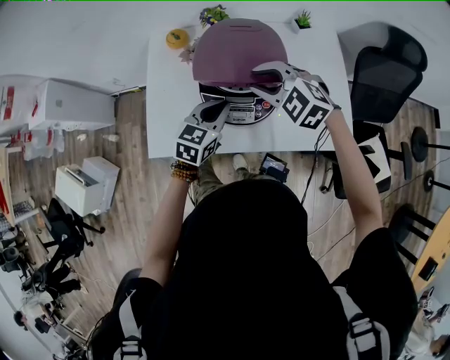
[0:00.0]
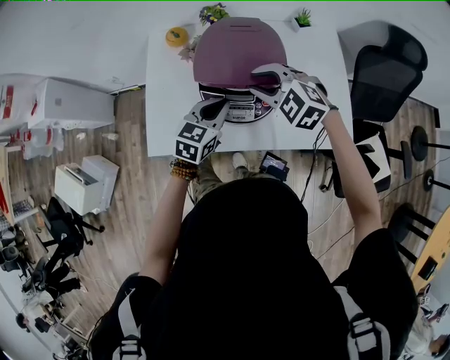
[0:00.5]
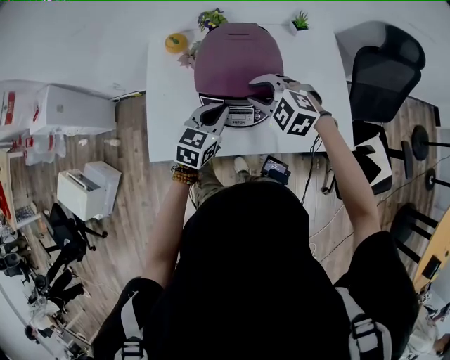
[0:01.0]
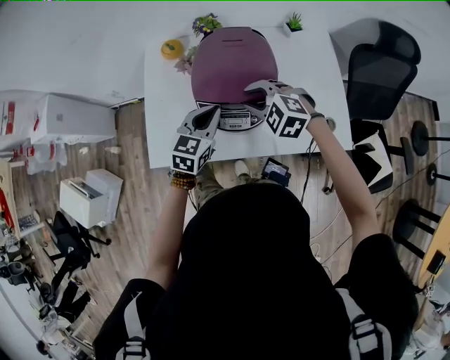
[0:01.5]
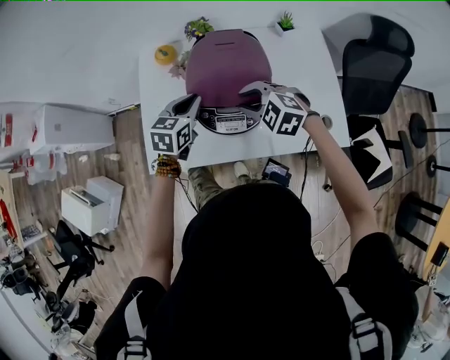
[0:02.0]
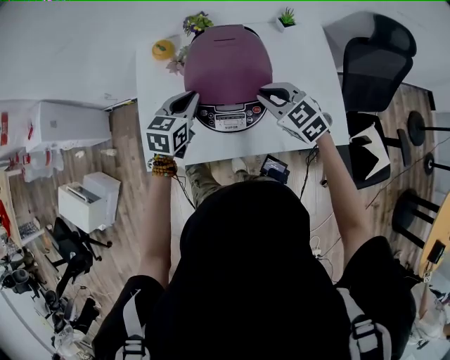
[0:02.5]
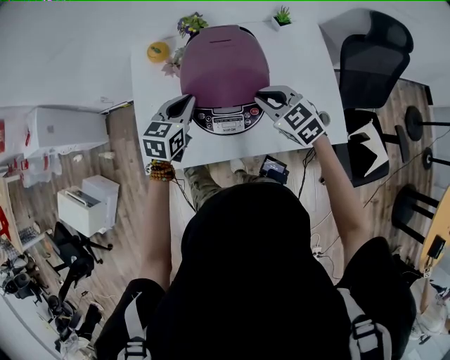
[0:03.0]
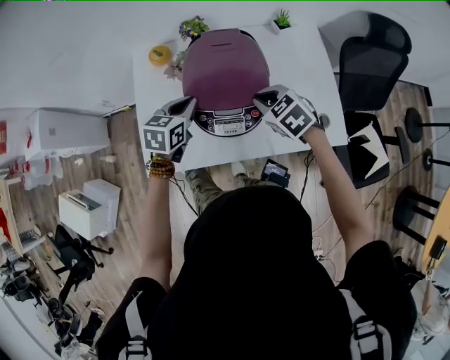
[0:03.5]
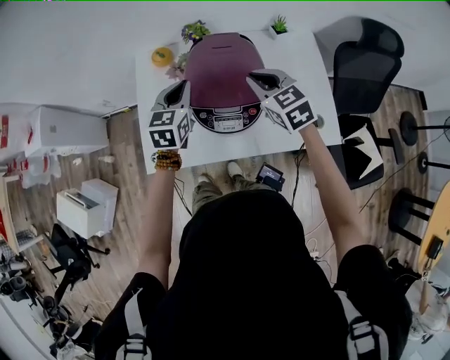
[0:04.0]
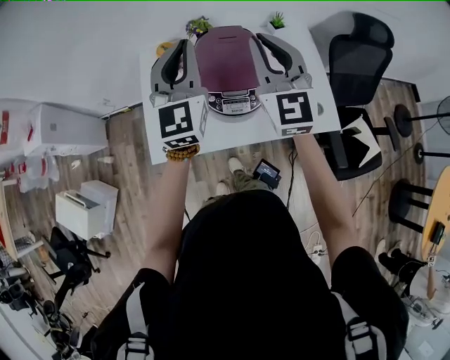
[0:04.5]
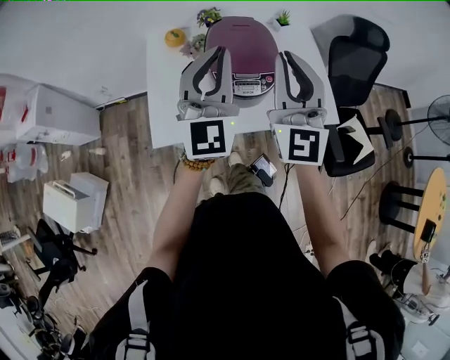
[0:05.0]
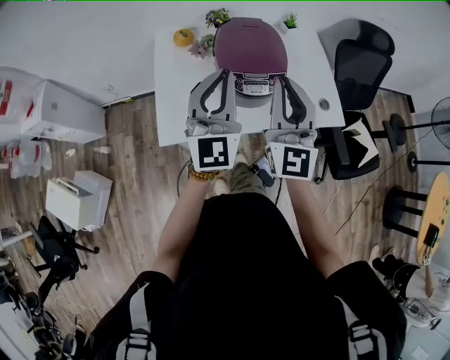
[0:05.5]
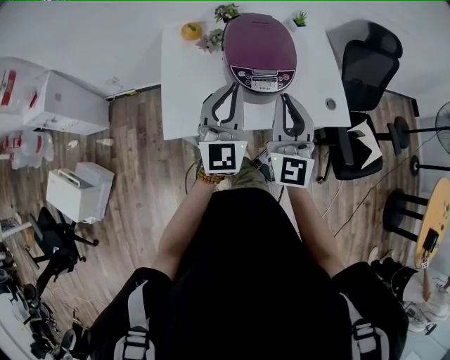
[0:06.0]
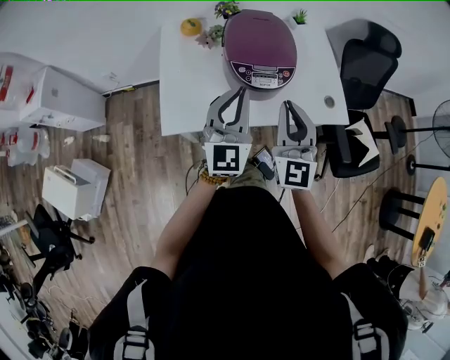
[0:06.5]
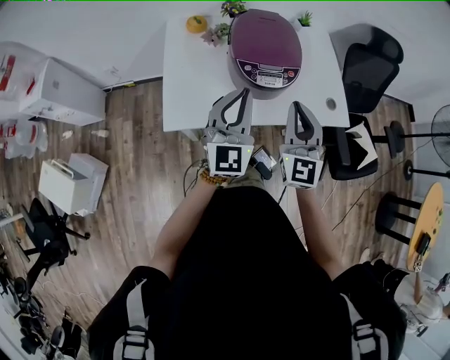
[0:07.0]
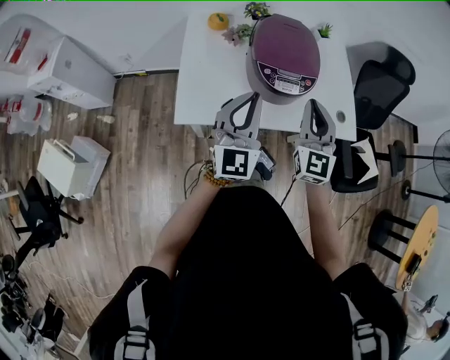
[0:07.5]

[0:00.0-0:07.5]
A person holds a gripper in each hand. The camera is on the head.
0:00.0 to 0:02.0: The left gripper is displaced forward by roughly 5 cm. The right gripper moves downward, some 5 cm.
0:02.0 to 0:04.0: The left gripper goes roughly 5 cm upward. The right gripper travels upward and to the right by approximately 10 cm, and rotates some 40 degrees.
0:04.0 to 0:05.5: The two grippers go approximately 25 cm backward and upward. The left gripper tilts its fingers approximately 40 degrees upward. Meanwhile the right gripper angles its fingers upward, by approximately 40 degrees.
0:05.5 to 0:07.5: Both grippers move downward, some 10 cm.

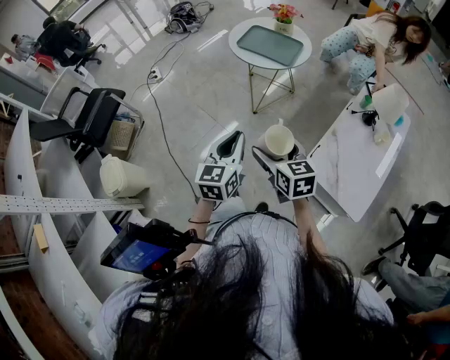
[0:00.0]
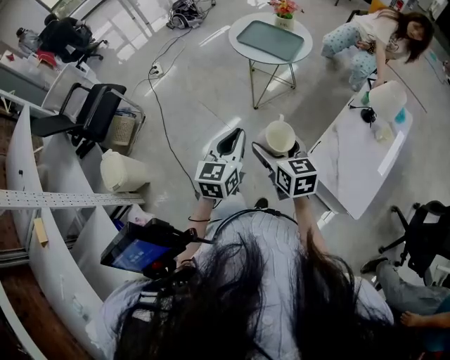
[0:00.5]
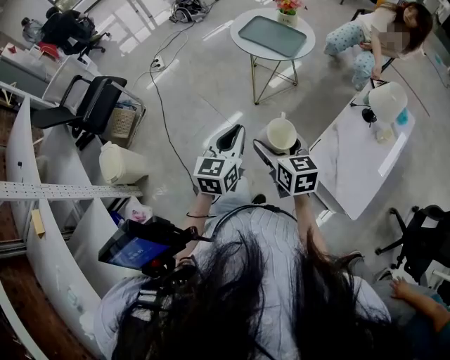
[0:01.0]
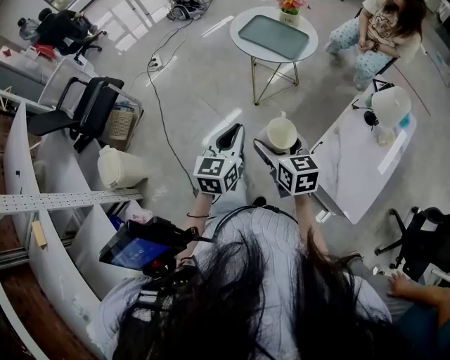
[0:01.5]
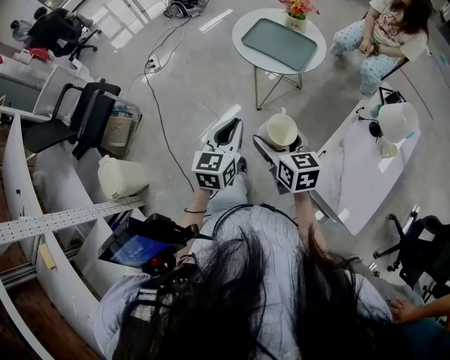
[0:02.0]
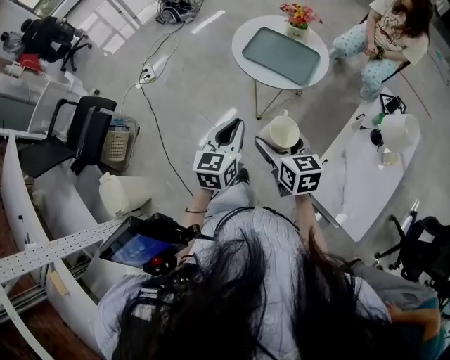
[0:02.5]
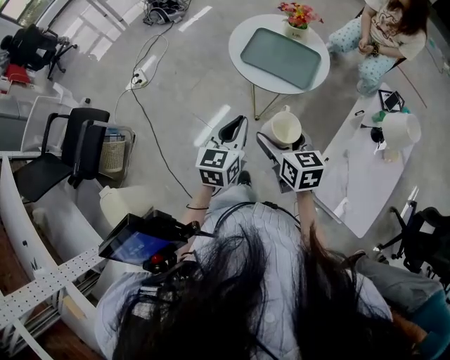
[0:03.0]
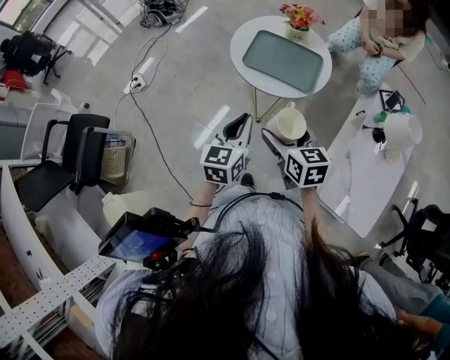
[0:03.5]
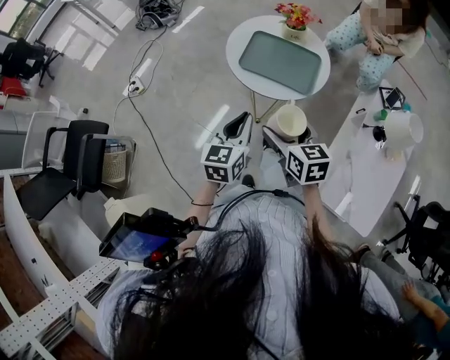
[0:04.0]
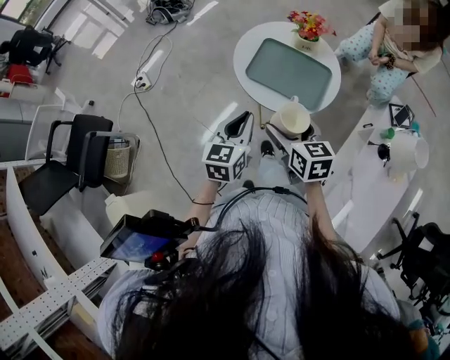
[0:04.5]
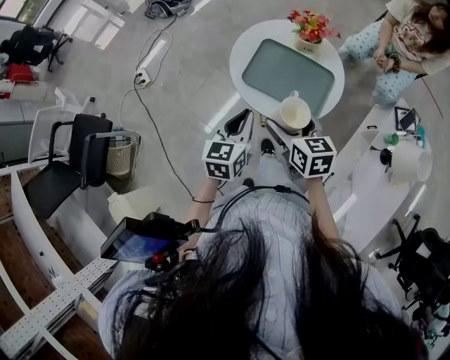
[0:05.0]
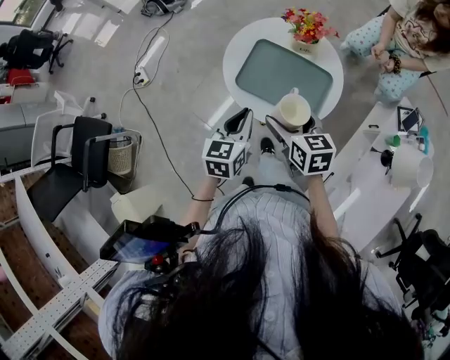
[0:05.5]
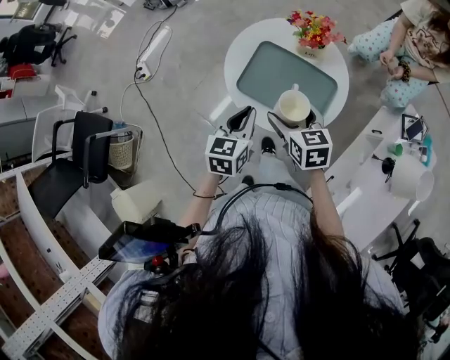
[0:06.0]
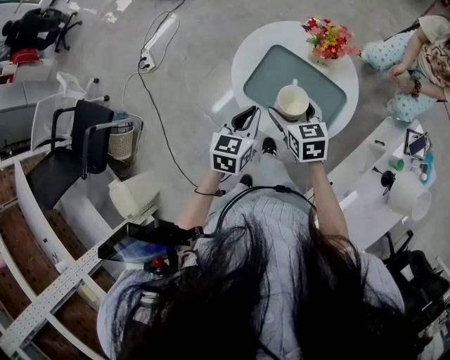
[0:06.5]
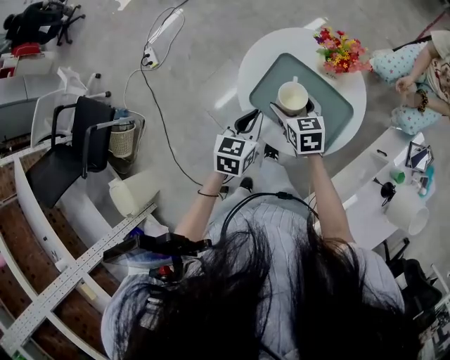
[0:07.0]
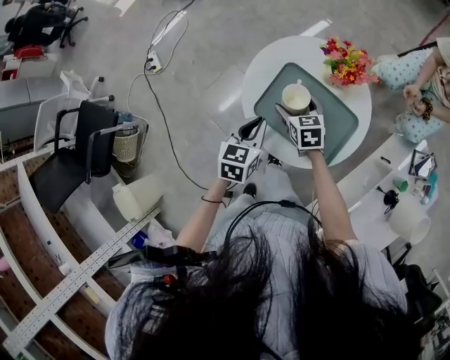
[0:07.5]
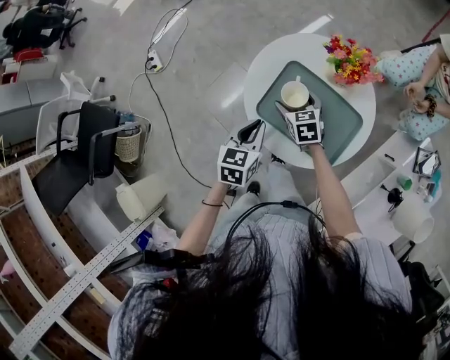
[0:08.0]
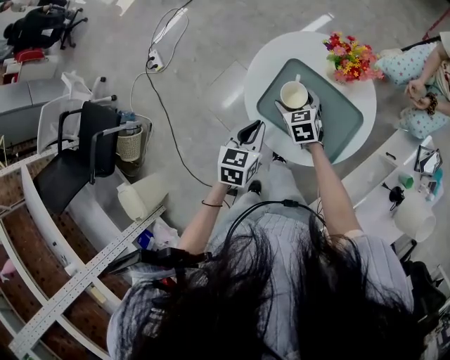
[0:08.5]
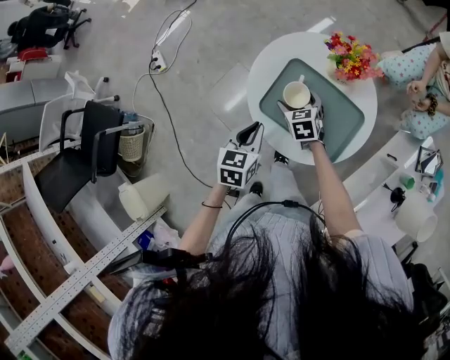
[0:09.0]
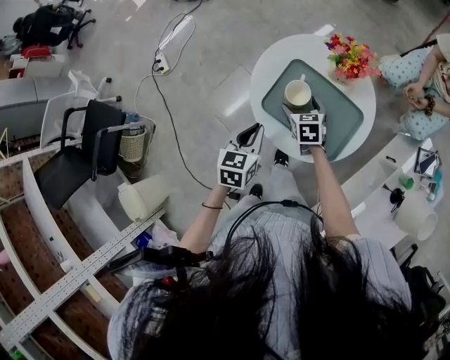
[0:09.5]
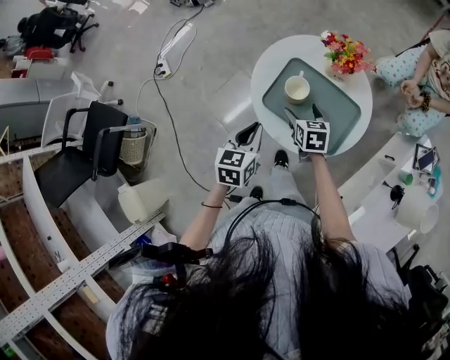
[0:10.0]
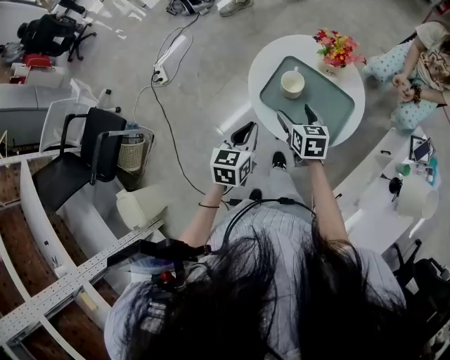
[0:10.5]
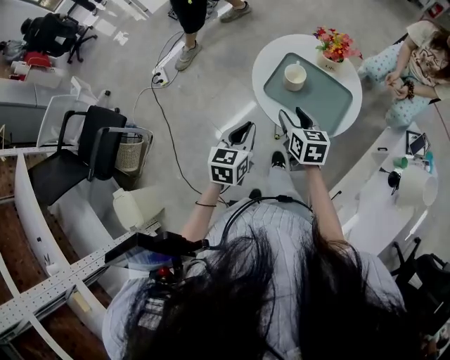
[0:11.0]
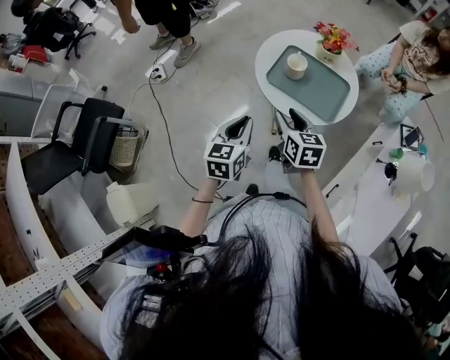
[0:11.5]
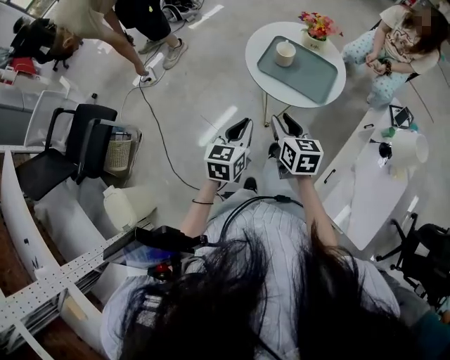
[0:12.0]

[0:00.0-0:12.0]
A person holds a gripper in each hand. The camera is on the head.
0:00.0 to 0:02.0: The grippers both shift forward by roughly 15 cm.
0:02.0 to 0:04.0: The two grippers go roughly 20 cm forward.
0:04.0 to 0:06.0: The grippers both shift forward by approximately 20 cm.
0:06.0 to 0:08.0: The right gripper is displaced forward and downward by some 20 cm, while the left gripper shifts about 10 cm downward and forward.
0:08.0 to 0:10.0: Both grippers travel together backward, about 5 cm.
0:10.0 to 0:12.0: The left gripper is displaced backward by approximately 20 cm. Meanwhile the right gripper heads backward and upward, covering some 30 cm, and closes its fingers.

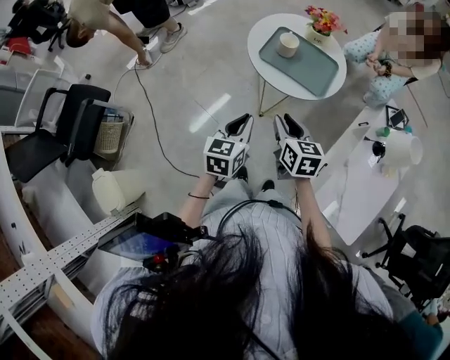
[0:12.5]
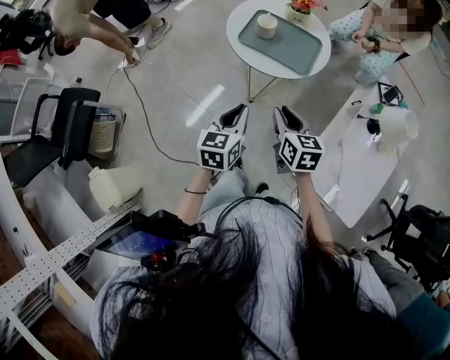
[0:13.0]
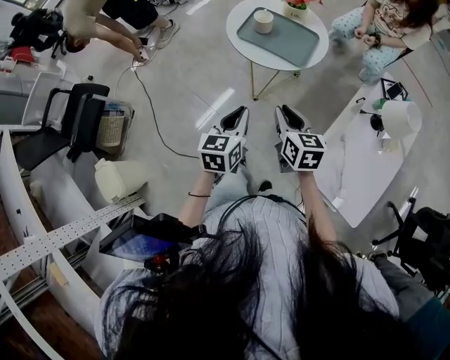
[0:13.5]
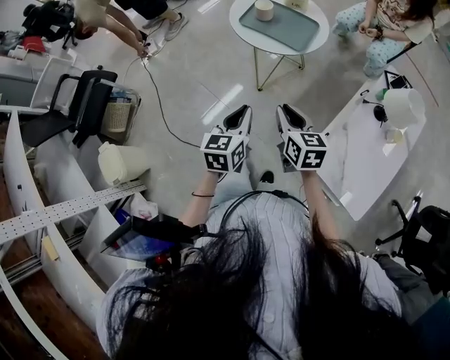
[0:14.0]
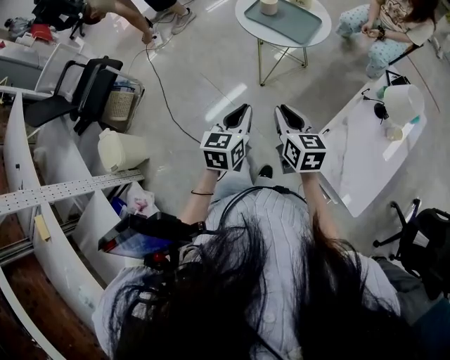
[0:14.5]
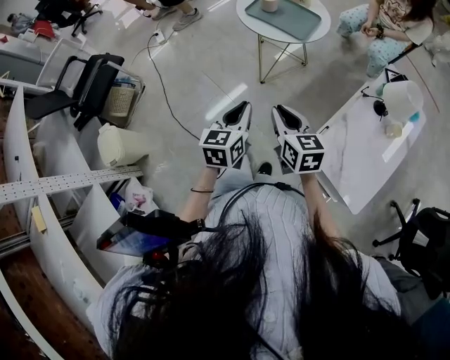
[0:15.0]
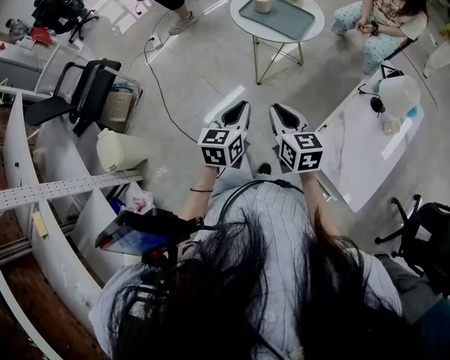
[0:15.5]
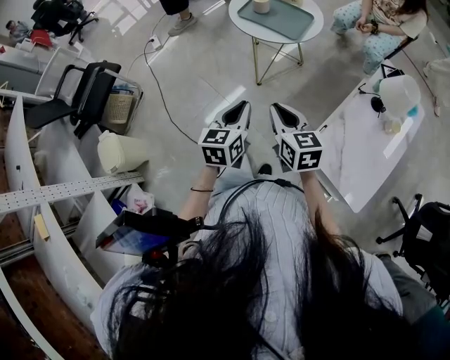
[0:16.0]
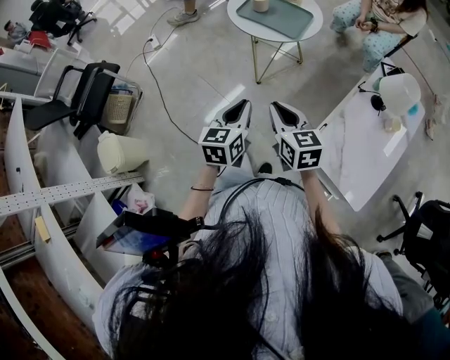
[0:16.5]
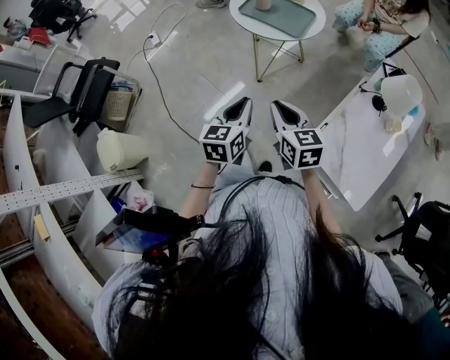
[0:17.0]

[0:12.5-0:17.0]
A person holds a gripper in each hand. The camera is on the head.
0:12.5 to 0:14.5: The grippers both shift backward and to the right by some 25 cm.
0:14.5 to 0:17.0: The grippers make only small movements.

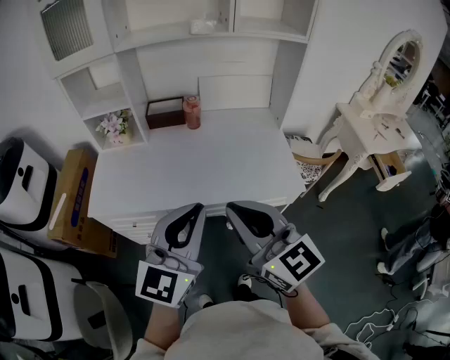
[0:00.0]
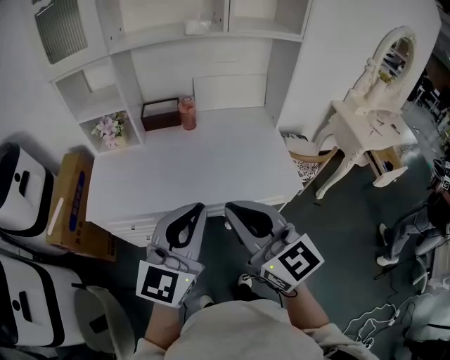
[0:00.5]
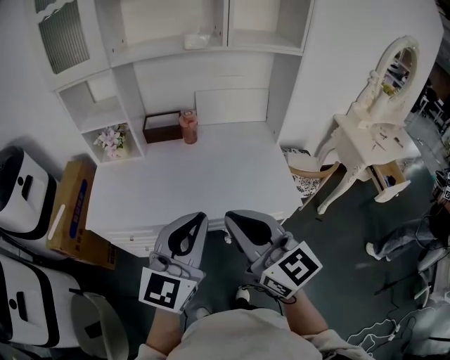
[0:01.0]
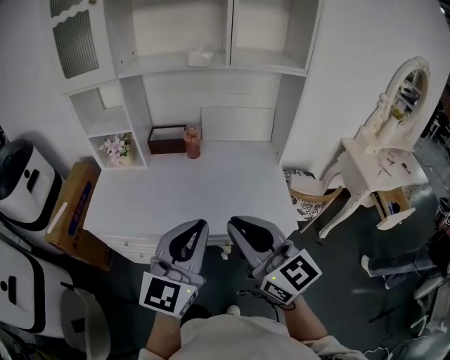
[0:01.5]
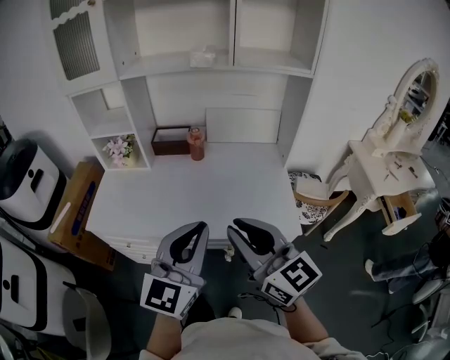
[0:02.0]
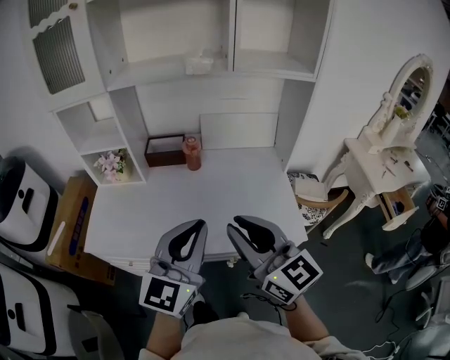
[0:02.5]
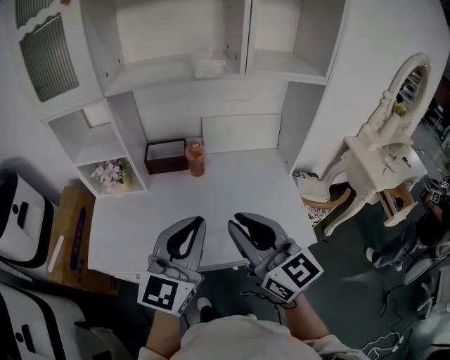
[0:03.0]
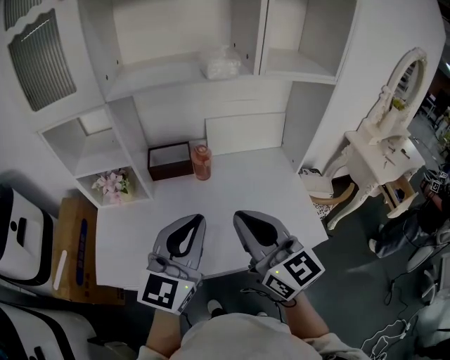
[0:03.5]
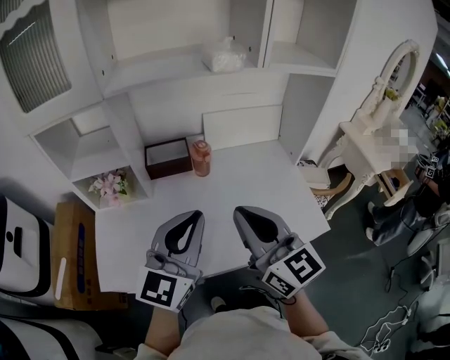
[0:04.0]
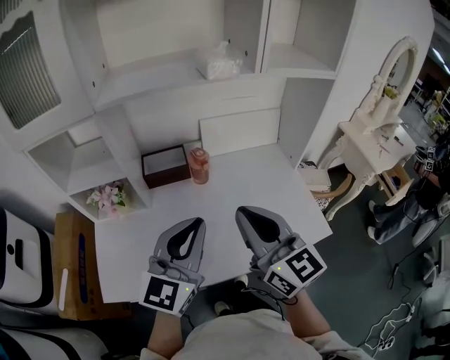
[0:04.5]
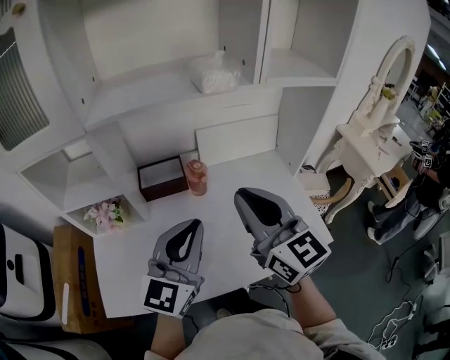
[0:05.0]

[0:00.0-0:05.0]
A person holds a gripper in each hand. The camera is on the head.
0:00.0 to 0:02.5: The left gripper heads forward, covering roughly 10 cm. Meanwhile the right gripper goes some 15 cm forward and to the right.
0:02.5 to 0:05.0: Both grippers move forward and to the left, about 25 cm.
